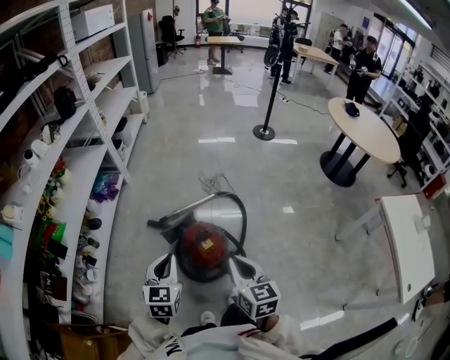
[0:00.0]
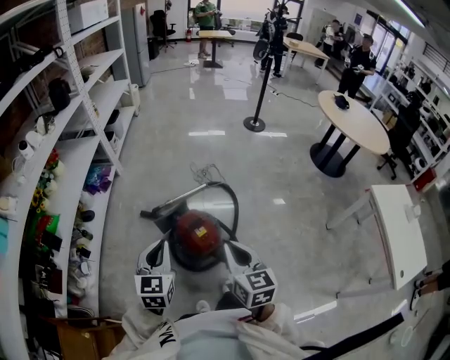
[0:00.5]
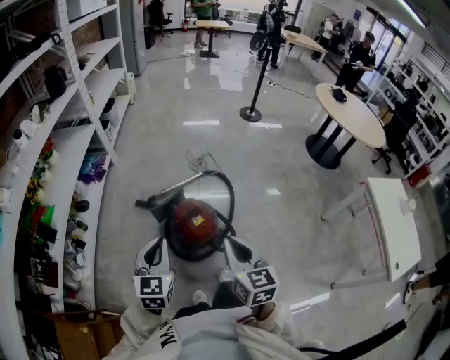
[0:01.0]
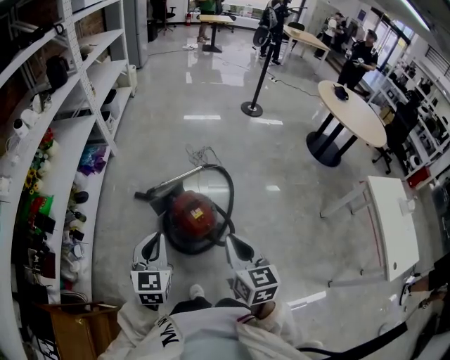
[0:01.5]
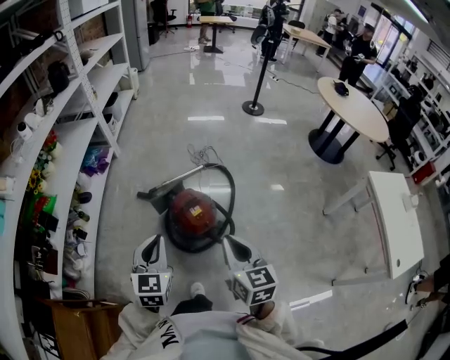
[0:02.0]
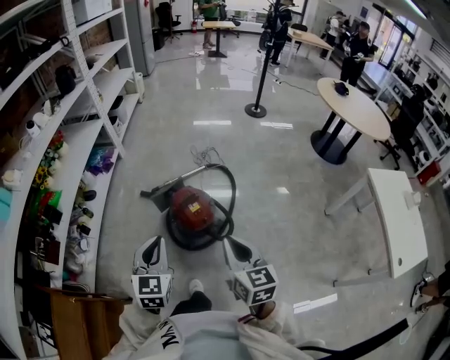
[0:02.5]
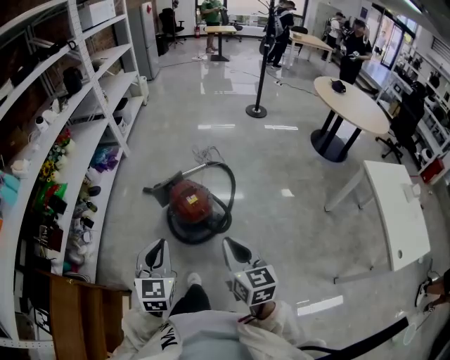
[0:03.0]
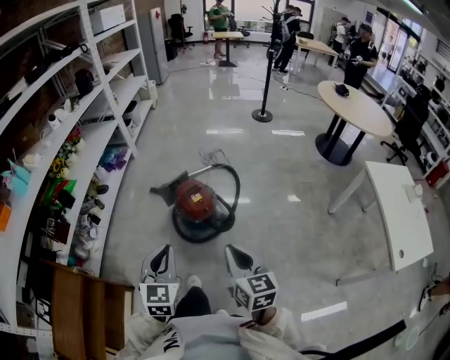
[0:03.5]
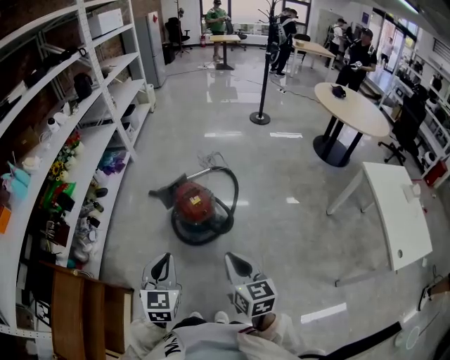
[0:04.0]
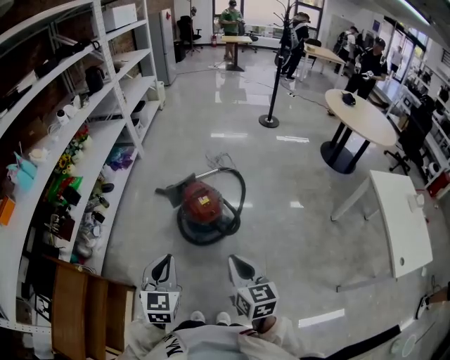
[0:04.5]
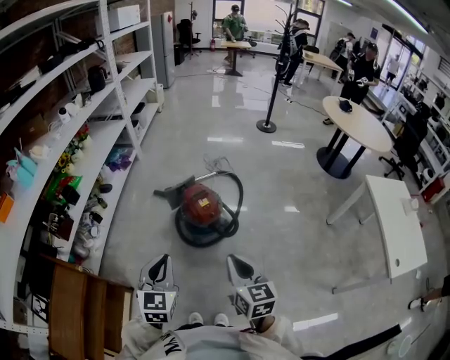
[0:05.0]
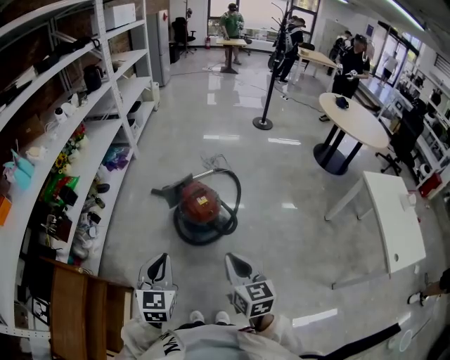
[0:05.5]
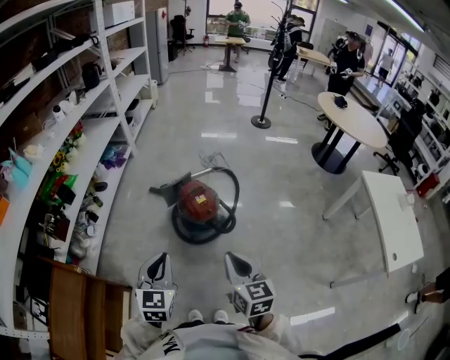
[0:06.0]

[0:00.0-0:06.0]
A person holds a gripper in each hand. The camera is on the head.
0:00.0 to 0:02.0: Both grippers travel together backward, roughly 10 cm.
0:02.0 to 0:04.0: The two grippers go some 20 cm backward.
0:04.0 to 0:06.0: The grippers both shift to the left by about 5 cm.

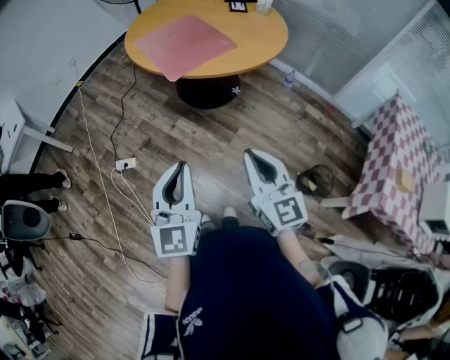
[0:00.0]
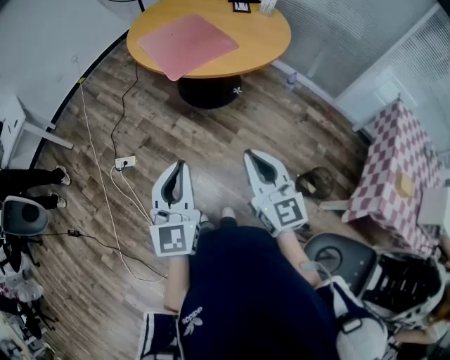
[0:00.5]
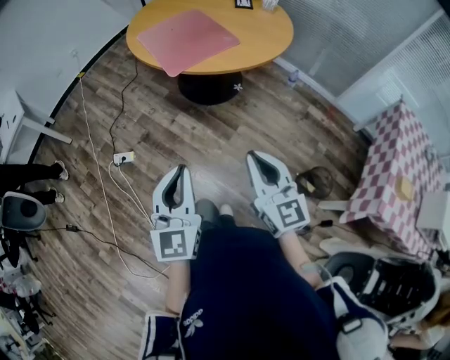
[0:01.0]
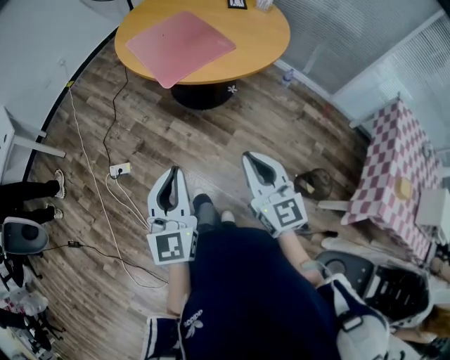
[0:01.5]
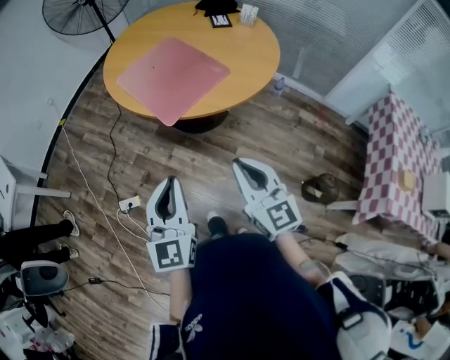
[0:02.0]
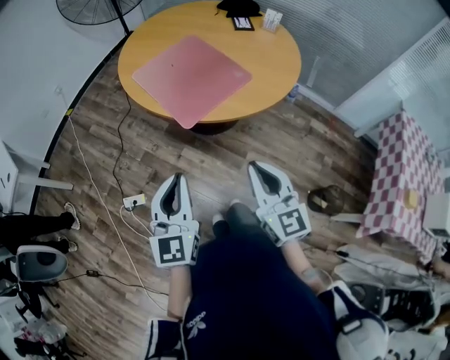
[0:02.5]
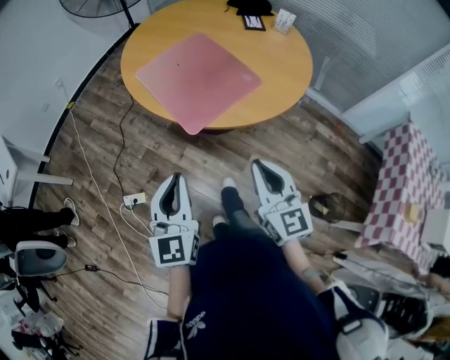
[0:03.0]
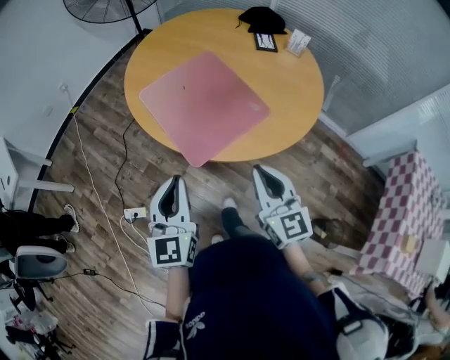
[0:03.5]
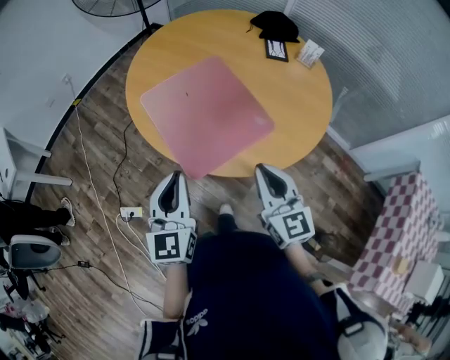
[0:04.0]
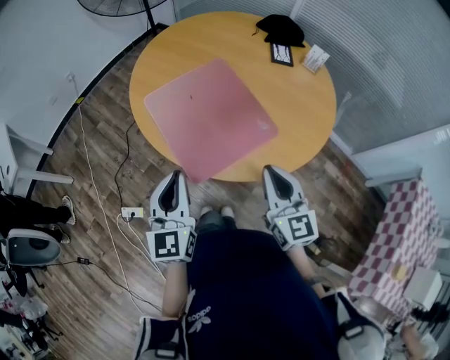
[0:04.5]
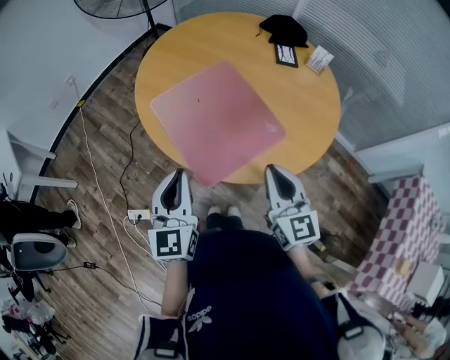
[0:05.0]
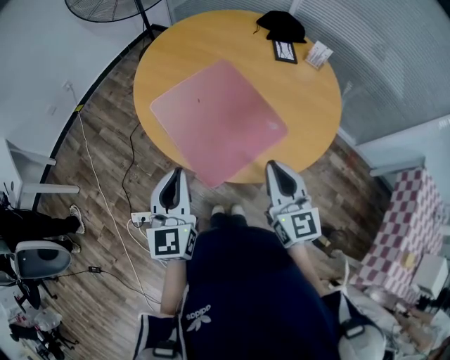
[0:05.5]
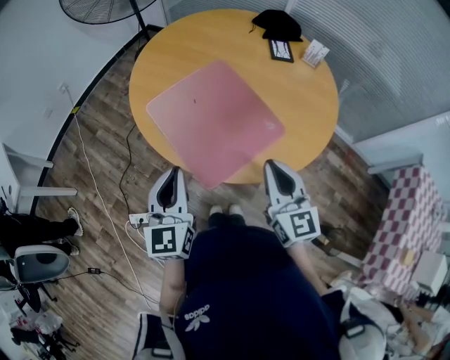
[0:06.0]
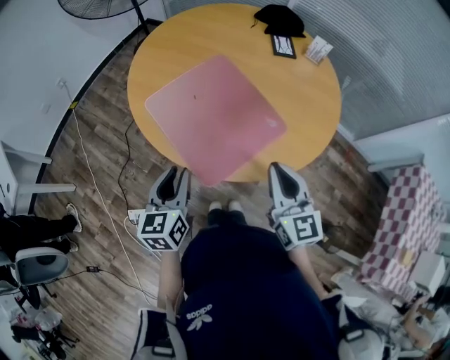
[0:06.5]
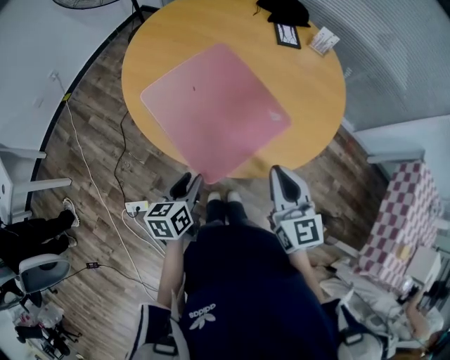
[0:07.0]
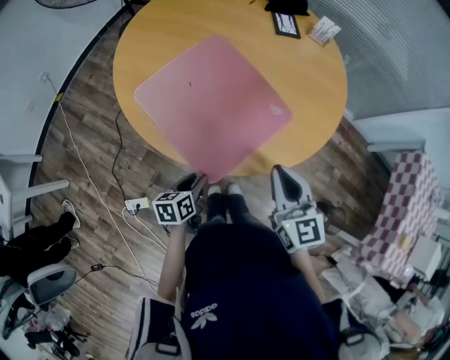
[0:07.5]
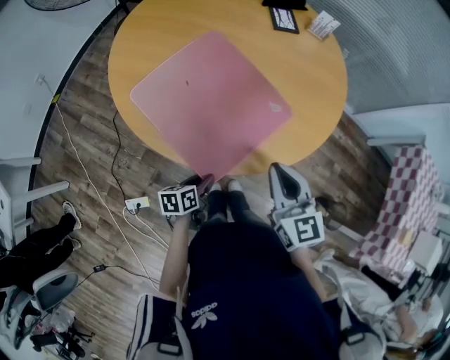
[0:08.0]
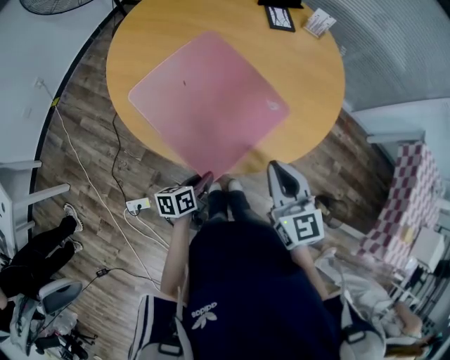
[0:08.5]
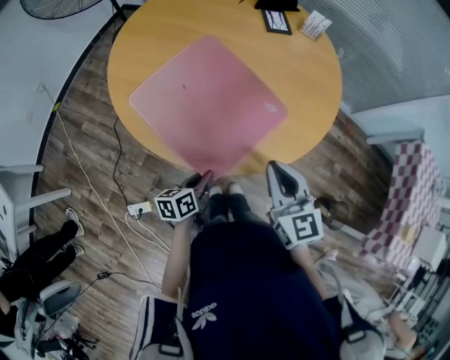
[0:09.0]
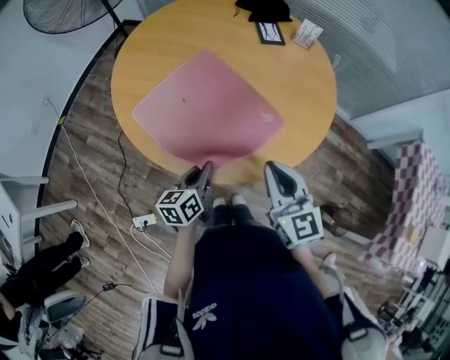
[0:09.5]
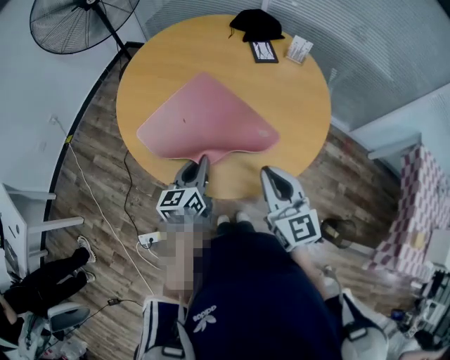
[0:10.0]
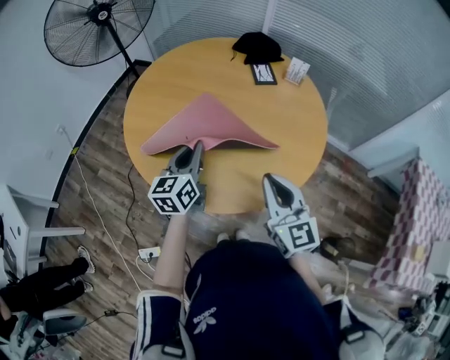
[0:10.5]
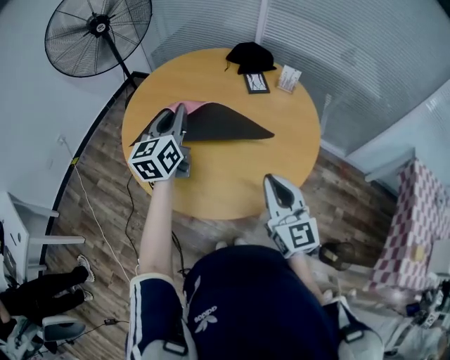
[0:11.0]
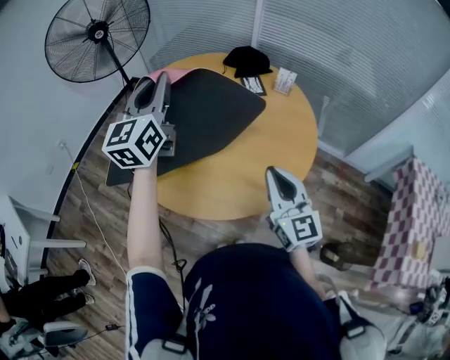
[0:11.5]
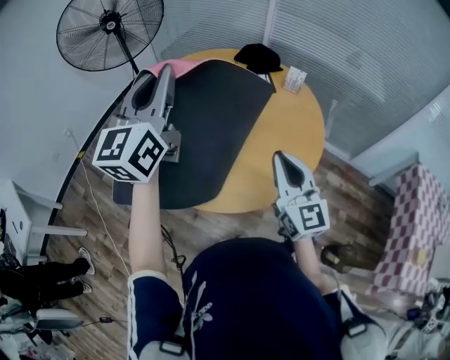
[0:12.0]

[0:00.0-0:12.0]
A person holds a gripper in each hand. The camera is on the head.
0:00.0 to 0:02.0: The grippers both shift forward by some 15 cm.
0:02.0 to 0:04.0: The grippers both shift forward by some 25 cm.
0:04.0 to 0:06.0: The left gripper is displaced forward by roughly 5 cm.
0:06.0 to 0:08.0: The left gripper heads downward, covering approximately 30 cm, tips its fingers downward by roughly 30 degrees, and opens up, while the right gripper is displaced downward by roughly 5 cm.
0:08.0 to 0:10.0: The left gripper shifts approximately 25 cm upward and forward, swivels roughly 40 degrees, and closes its fingers. Meanwhile the right gripper goes approximately 5 cm upward.
0:10.0 to 0:12.0: The right gripper is displaced upward by approximately 10 cm, while the left gripper travels upward by about 35 cm, and tips its fingers upward by about 30 degrees.

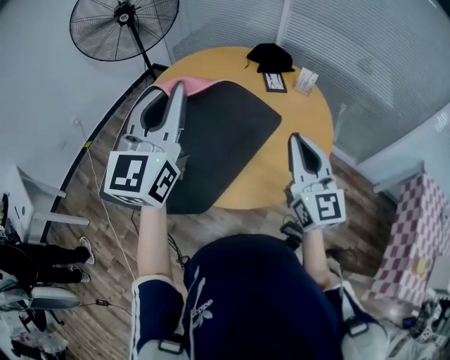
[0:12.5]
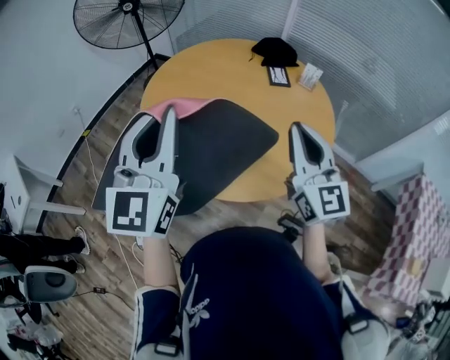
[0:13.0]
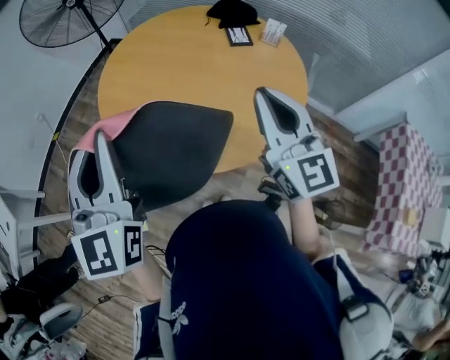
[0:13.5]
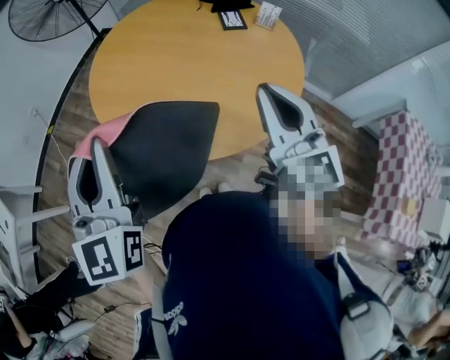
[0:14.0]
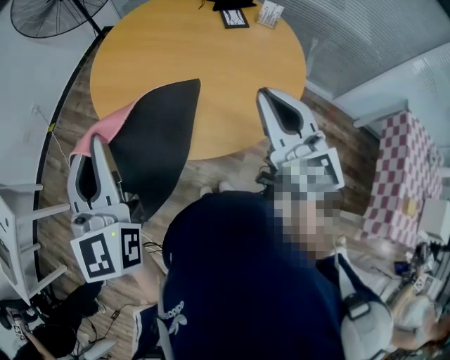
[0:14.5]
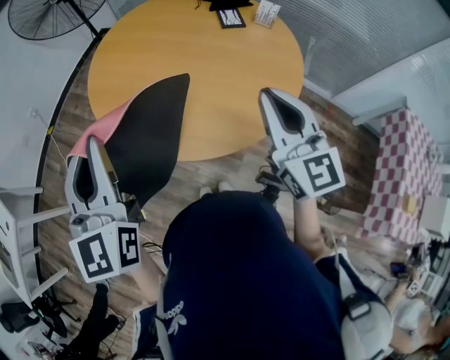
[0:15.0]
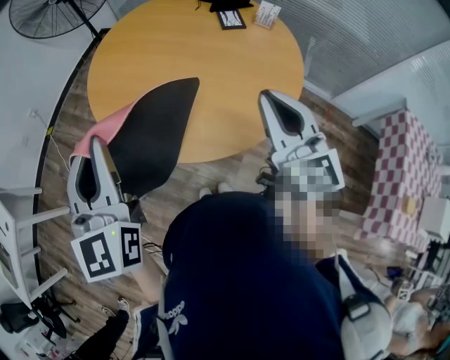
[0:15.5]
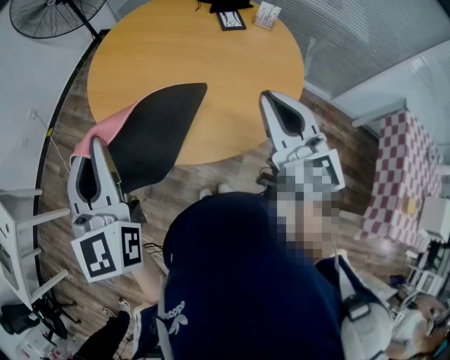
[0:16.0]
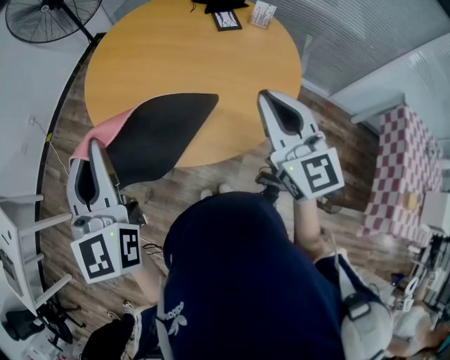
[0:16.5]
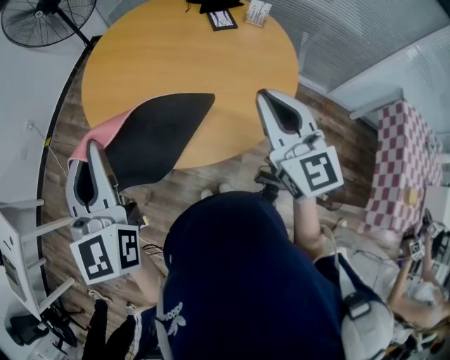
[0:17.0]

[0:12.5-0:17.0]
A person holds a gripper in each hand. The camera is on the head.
0:12.5 to 0:14.5: The left gripper is displaced backward and downward by roughly 15 cm, and changes its angle by approximately 20 degrees.
0:14.5 to 0:17.0: The grippers stay close to where they were, moving slightly.

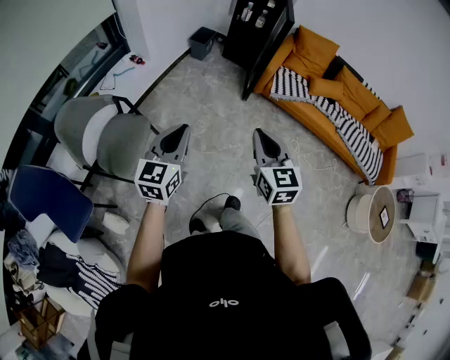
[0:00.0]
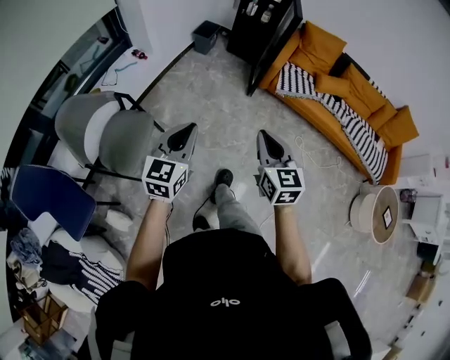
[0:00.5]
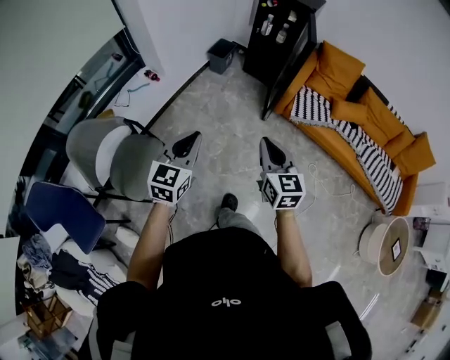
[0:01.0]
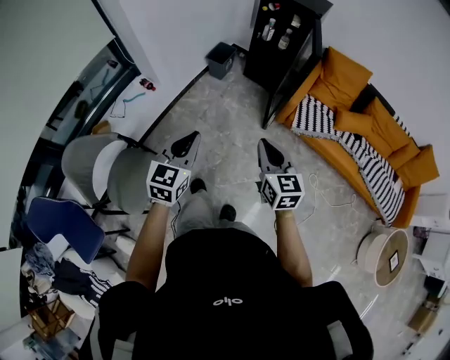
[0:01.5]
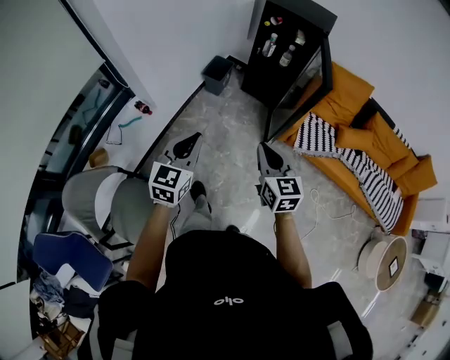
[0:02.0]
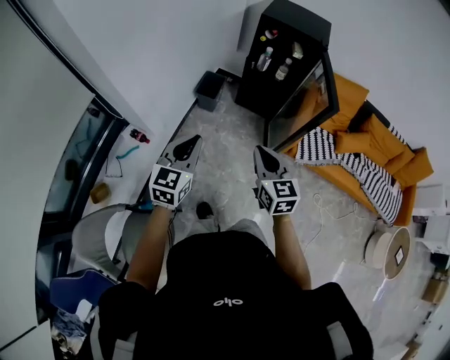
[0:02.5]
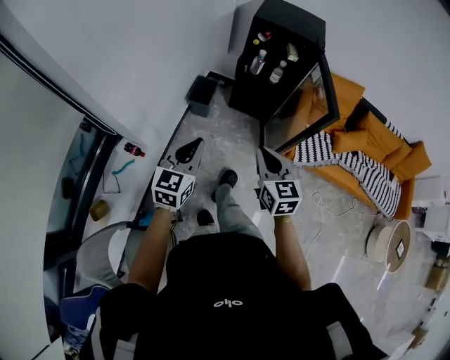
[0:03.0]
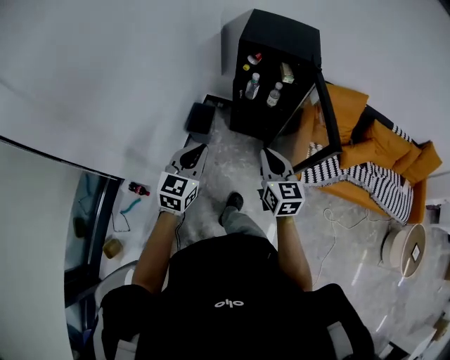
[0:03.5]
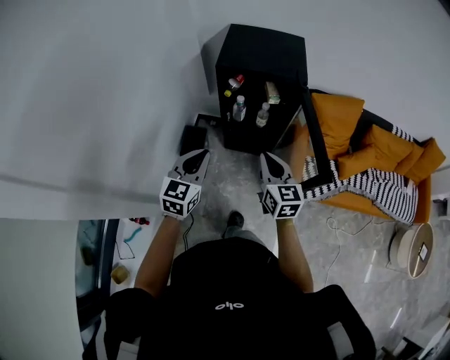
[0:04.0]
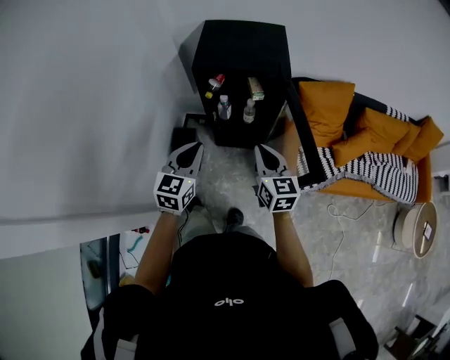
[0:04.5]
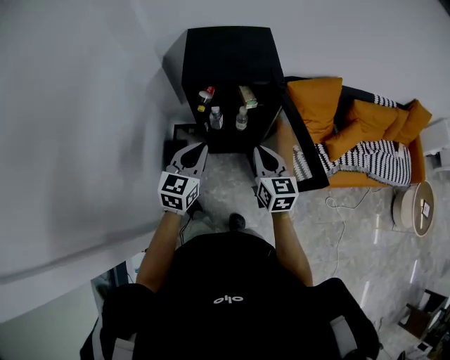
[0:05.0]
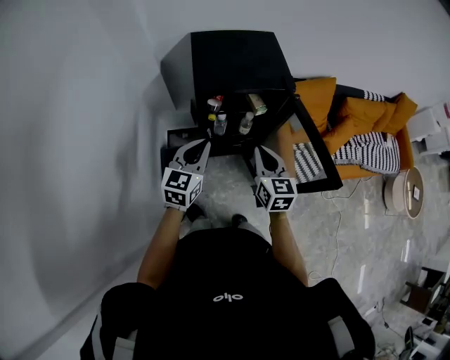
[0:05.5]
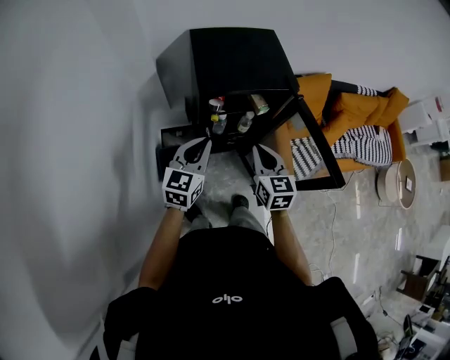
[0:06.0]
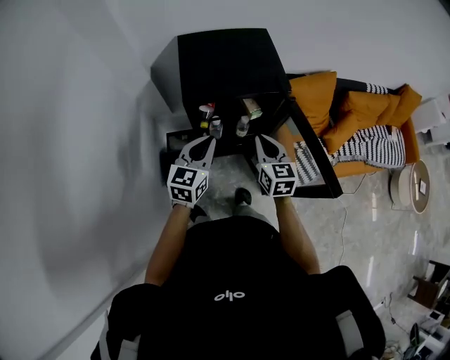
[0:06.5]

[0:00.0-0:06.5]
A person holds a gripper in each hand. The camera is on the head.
0:00.0 to 0:02.0: Both grippers are carried forward, roughly 50 cm.
0:02.0 to 0:04.5: The two grippers travel together, forward, approximately 50 cm. The left gripper turns by approximately 20 degrees; the right gripper turns by roughly 30 degrees.
0:04.5 to 0:06.5: The right gripper goes approximately 15 cm forward and to the left. Meanwhile the left gripper shifts about 15 cm forward.
